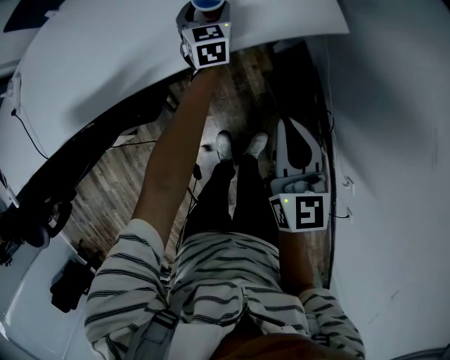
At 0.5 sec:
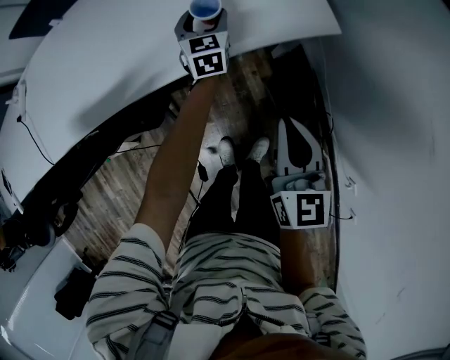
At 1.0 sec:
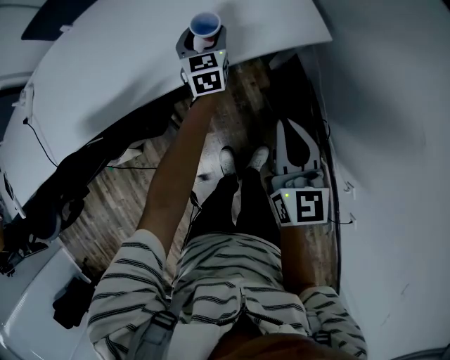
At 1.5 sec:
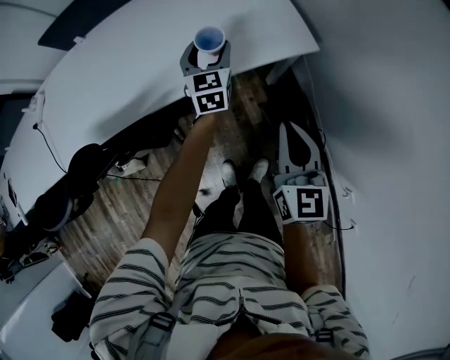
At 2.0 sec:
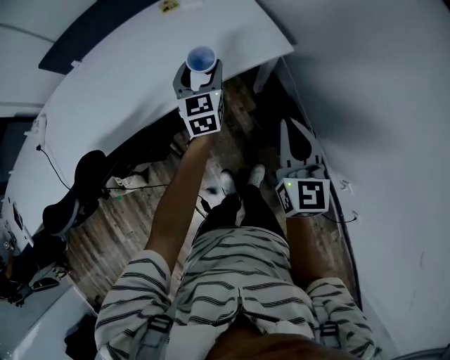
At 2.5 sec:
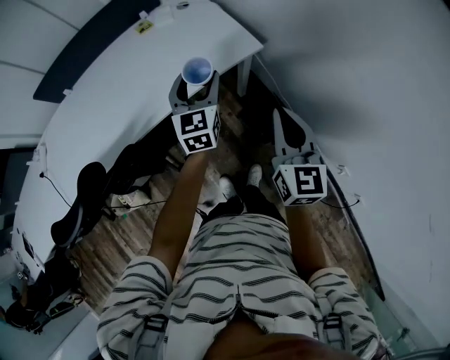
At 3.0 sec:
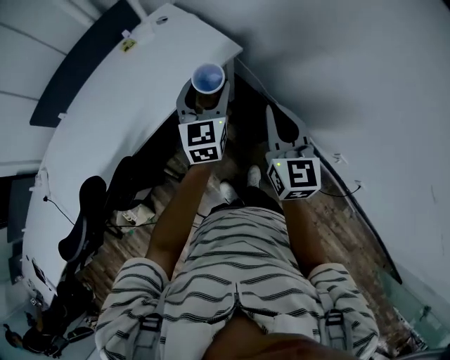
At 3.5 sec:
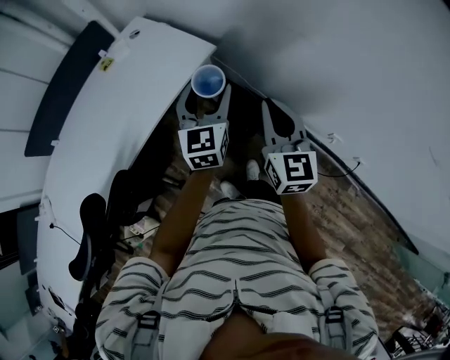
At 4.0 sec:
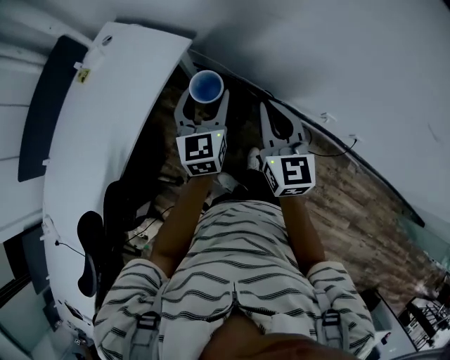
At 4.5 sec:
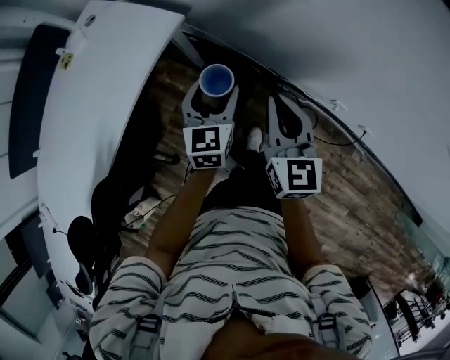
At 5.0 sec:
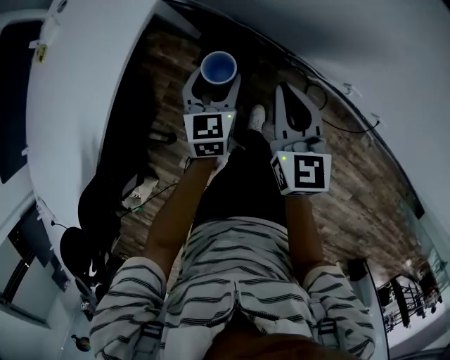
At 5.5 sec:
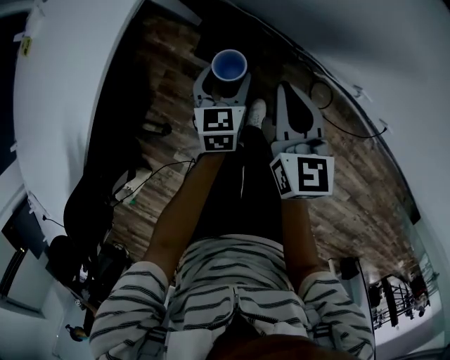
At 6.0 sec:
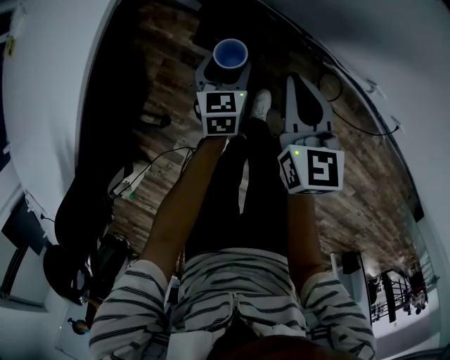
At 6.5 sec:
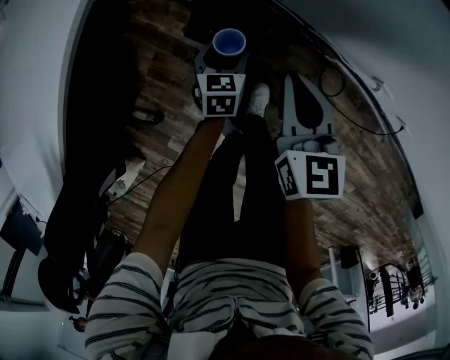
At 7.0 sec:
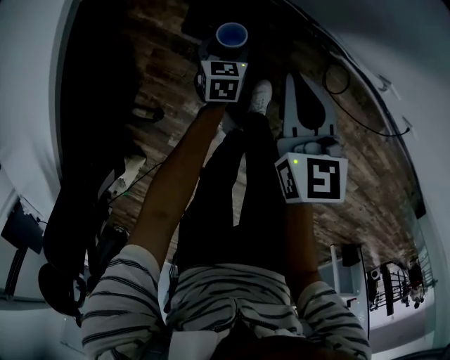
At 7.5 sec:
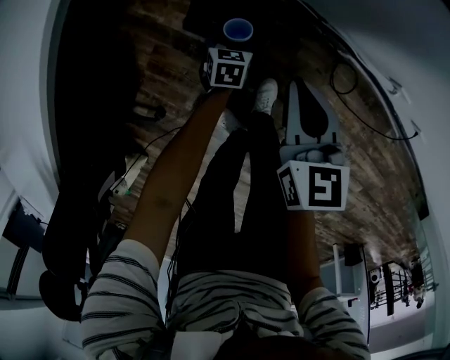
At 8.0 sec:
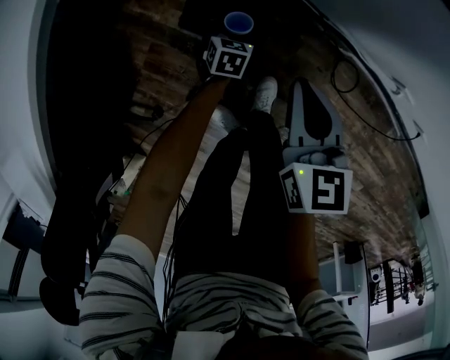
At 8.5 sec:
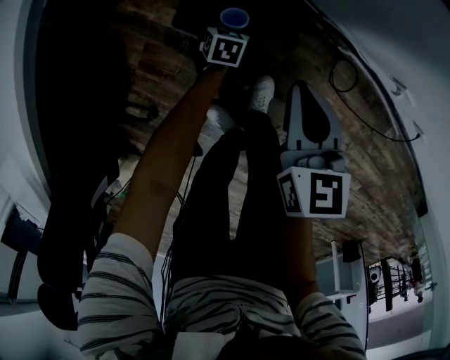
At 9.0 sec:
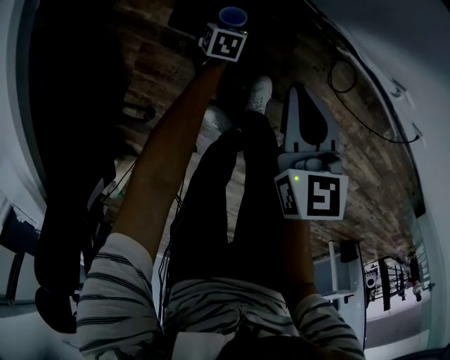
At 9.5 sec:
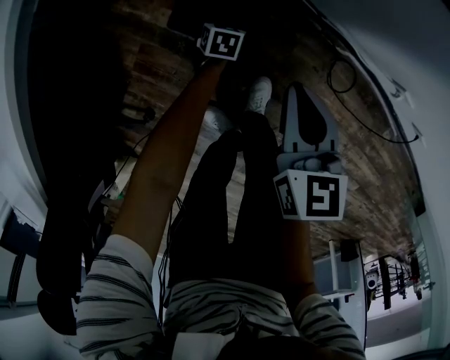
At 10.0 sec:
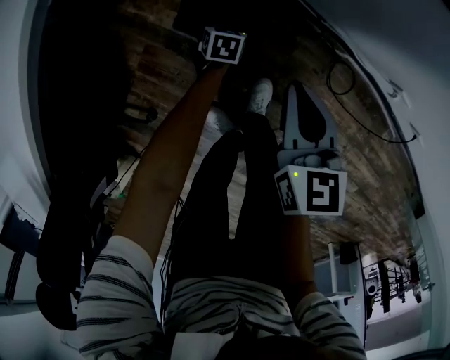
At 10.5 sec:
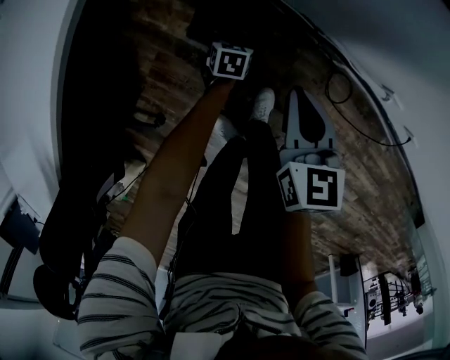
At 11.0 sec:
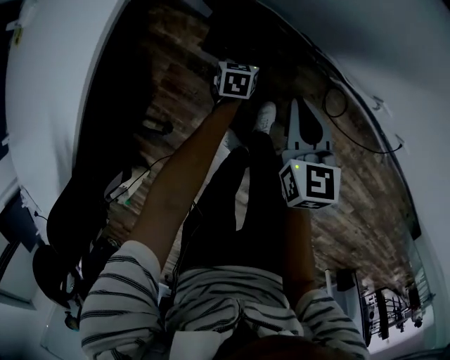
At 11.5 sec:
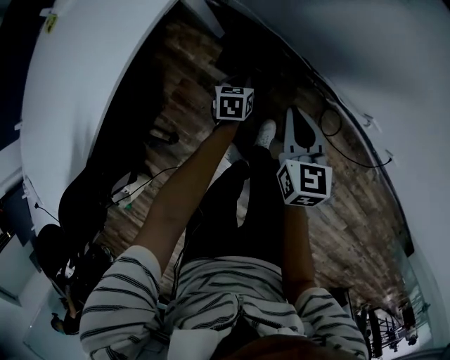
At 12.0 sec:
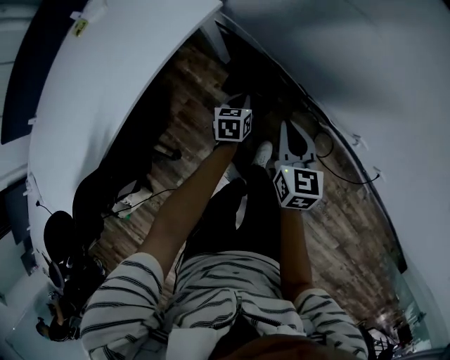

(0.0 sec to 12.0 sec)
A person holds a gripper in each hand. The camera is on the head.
0.0 sec - 2.0 sec: The right gripper moves upward and backward, about 15 cm; the left gripper goes about 25 cm upward and backward.
2.0 sec - 4.0 sec: The left gripper shifts by approximately 30 cm, and changes its angle by roughly 40 degrees. The right gripper changes place by roughly 15 cm, and changes its angle by approximately 30 degrees.
4.0 sec - 6.0 sec: The two grippers go approximately 40 cm downward. The left gripper points its fingers some 30 degrees further downward. The right gripper rotates roughly 20 degrees.
6.0 sec - 8.0 sec: The right gripper shifts some 10 cm downward, while the left gripper travels downward by some 25 cm, and swivels approximately 20 degrees.
10.0 sec - 12.0 sec: The left gripper travels upward by about 35 cm, turns by roughly 30 degrees, and closes its fingers. The right gripper goes approximately 20 cm upward.

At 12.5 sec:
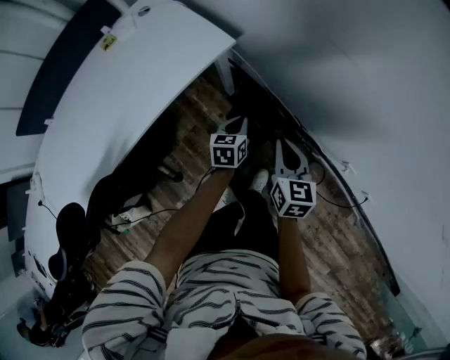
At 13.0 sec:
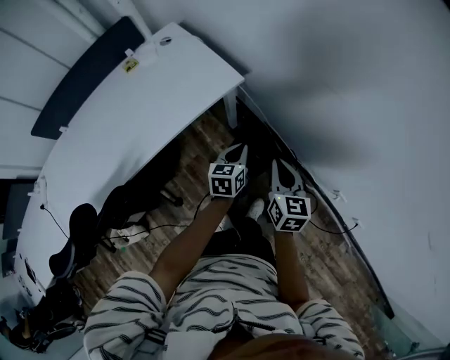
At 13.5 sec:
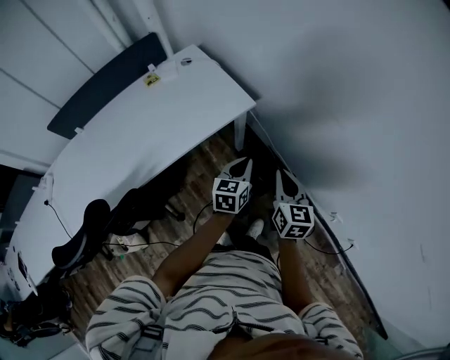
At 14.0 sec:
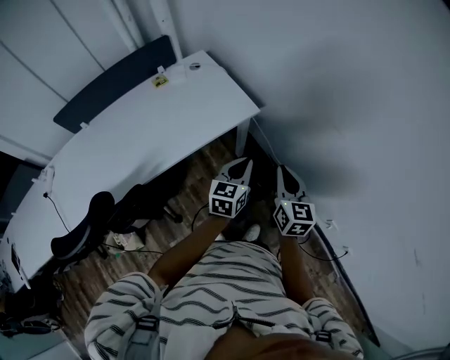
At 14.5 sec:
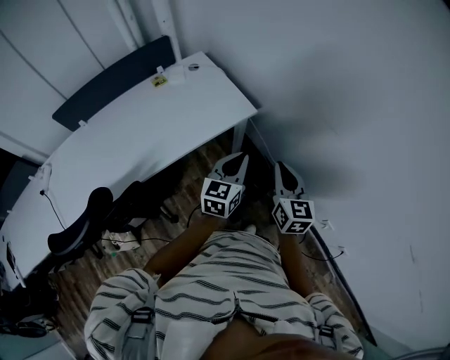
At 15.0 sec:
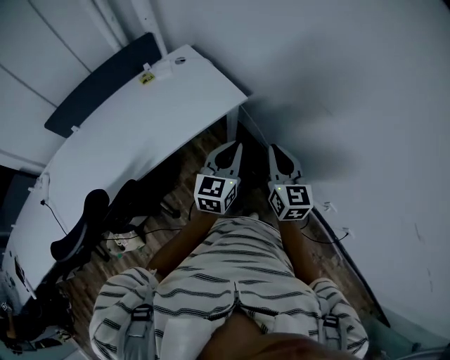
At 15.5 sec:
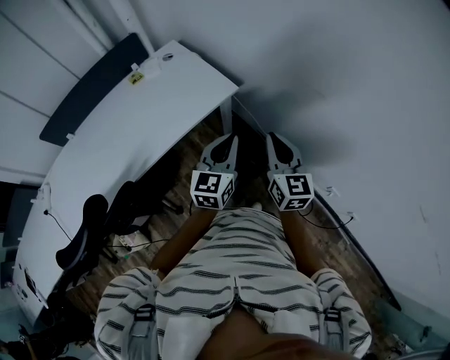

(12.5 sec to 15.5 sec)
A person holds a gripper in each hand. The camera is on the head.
12.5 sec - 14.0 sec: Both grippers move upward, approximately 20 cm. The left gripper changes its angle by some 20 degrees.
14.0 sec - 15.5 sec: The left gripper heads upward, covering approximately 5 cm.

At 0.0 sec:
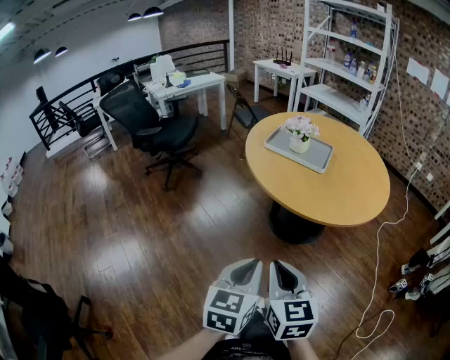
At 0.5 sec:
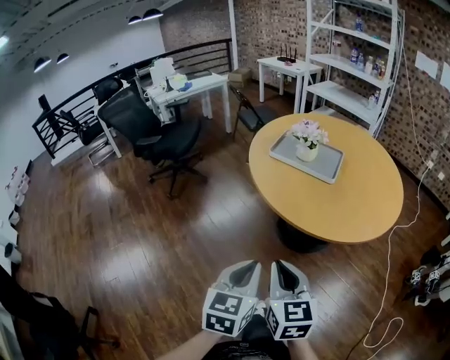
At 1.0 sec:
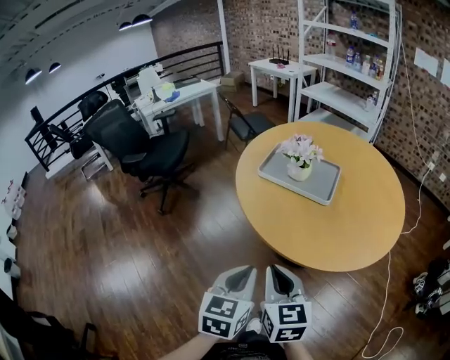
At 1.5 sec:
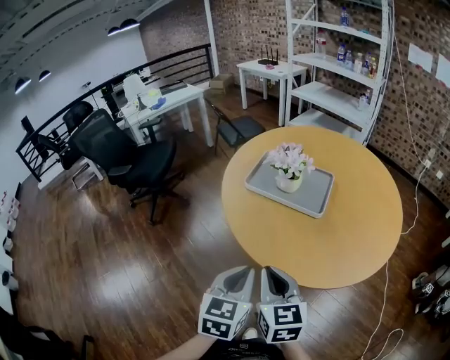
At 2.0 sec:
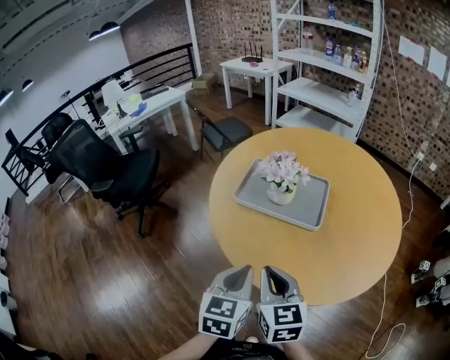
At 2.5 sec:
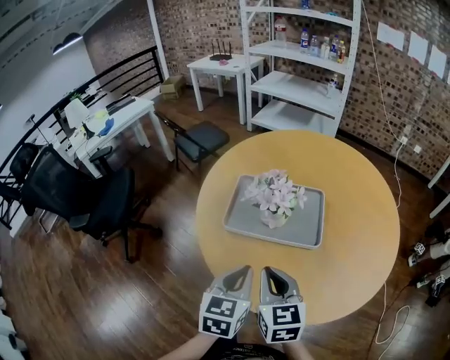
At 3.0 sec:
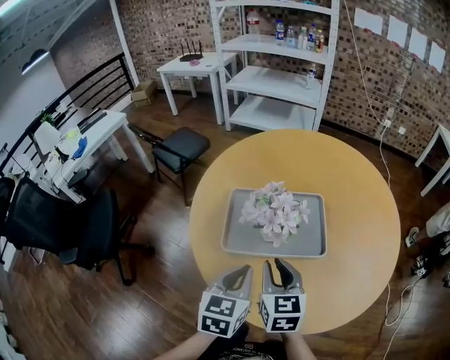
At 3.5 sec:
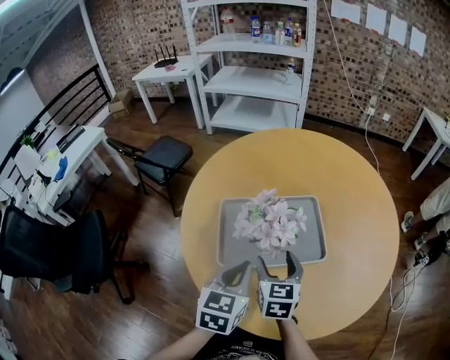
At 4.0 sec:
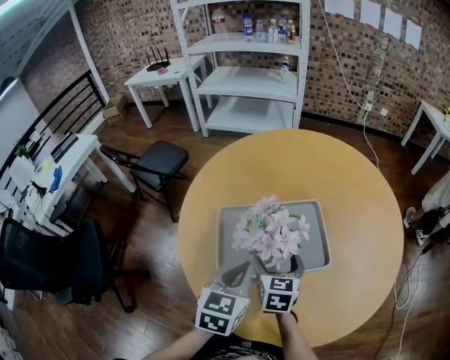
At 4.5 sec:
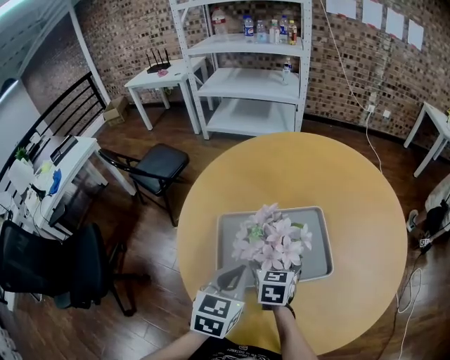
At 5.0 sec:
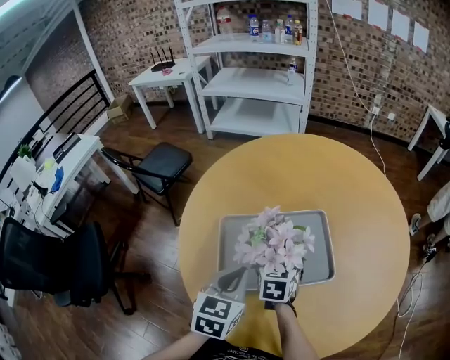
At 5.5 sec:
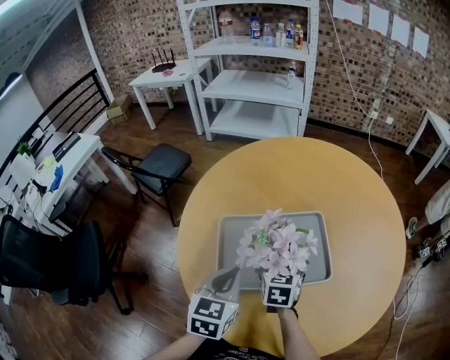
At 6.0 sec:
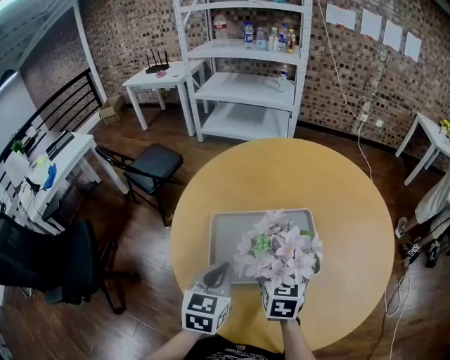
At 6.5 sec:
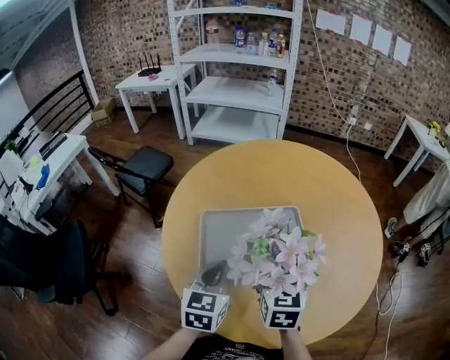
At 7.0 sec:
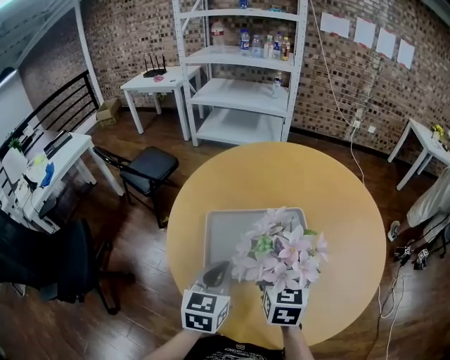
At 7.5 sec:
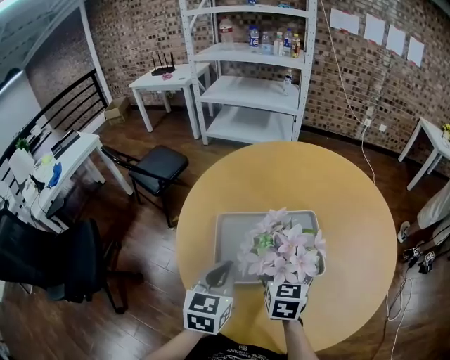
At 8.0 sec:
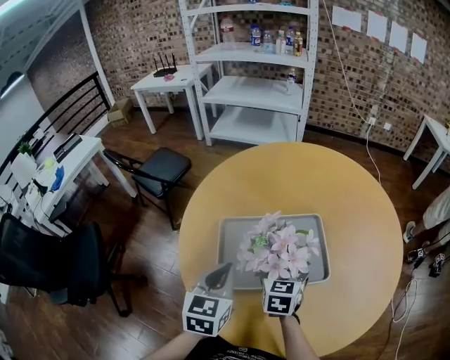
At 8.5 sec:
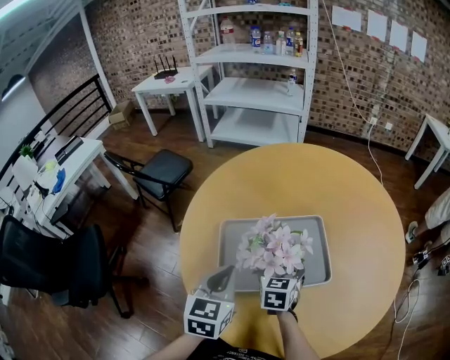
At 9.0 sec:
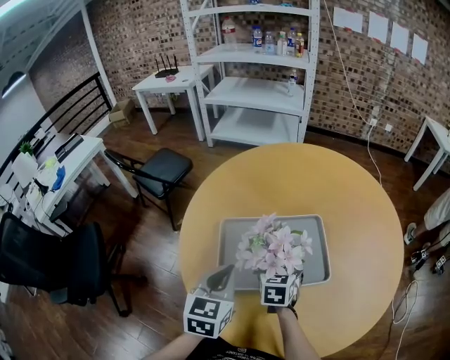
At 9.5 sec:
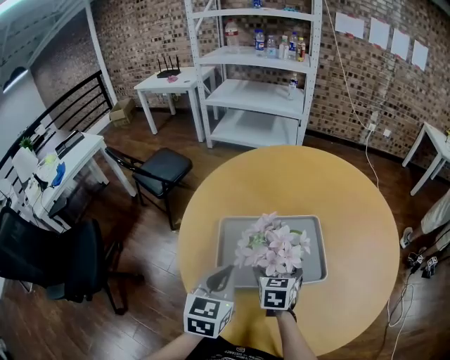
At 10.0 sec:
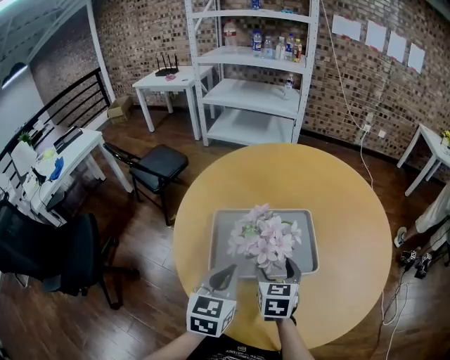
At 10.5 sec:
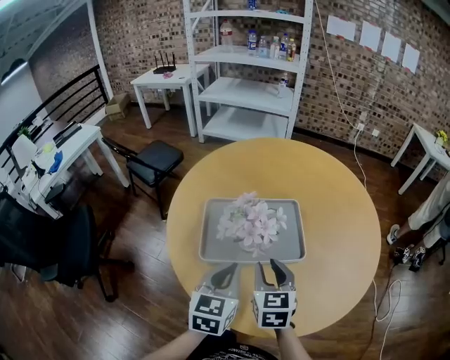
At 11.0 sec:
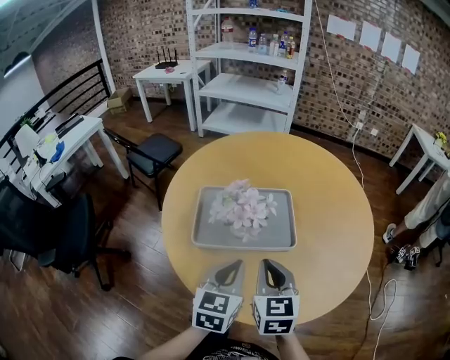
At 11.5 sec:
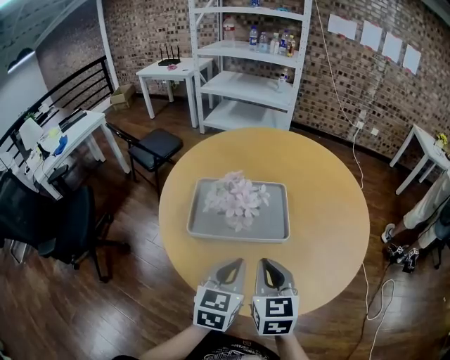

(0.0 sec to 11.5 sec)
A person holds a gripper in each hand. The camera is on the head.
0.0 sec - 2.0 sec: Both grippers are carried forward, about 40 cm.
2.0 sec - 4.0 sec: The left gripper moves roughly 30 cm, and changes its angle by about 30 degrees. Meanwhile the right gripper ends up about 35 cm from where it was, rotates roughly 40 degrees, and opens up.
7.5 sec - 9.5 sec: The right gripper heads downward, covering approximately 5 cm.
9.5 sec - 11.5 sec: The left gripper moves to the right and backward, some 20 cm; the right gripper travels backward, upward and to the right by approximately 25 cm, and closes its fingers.
